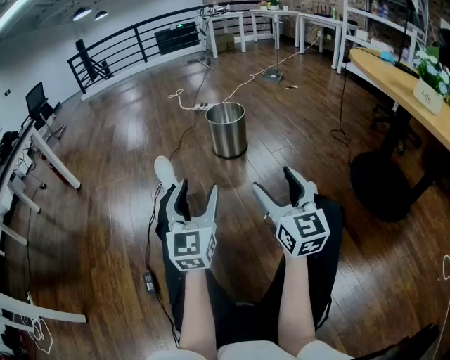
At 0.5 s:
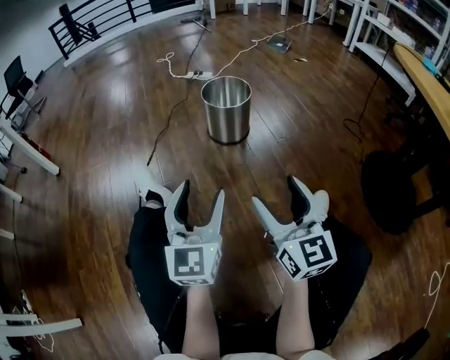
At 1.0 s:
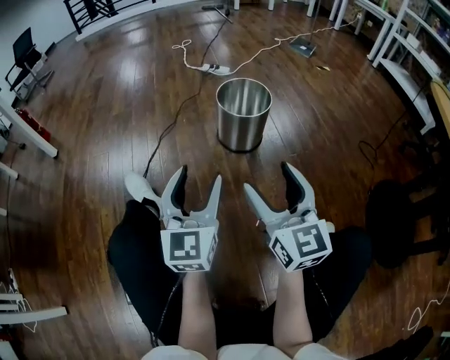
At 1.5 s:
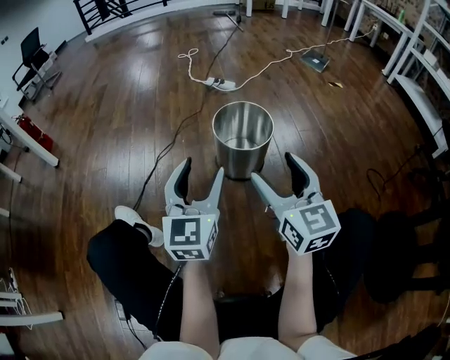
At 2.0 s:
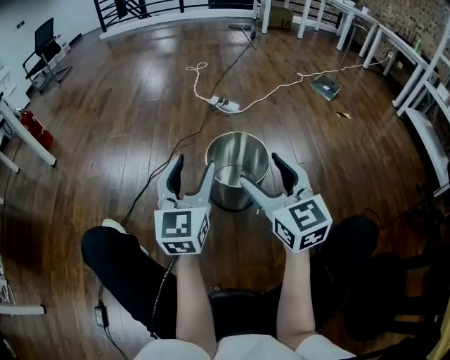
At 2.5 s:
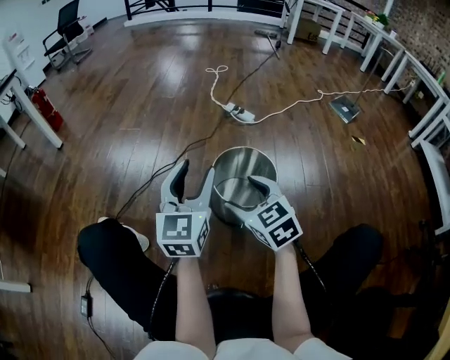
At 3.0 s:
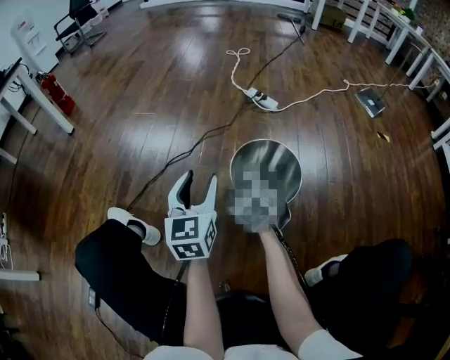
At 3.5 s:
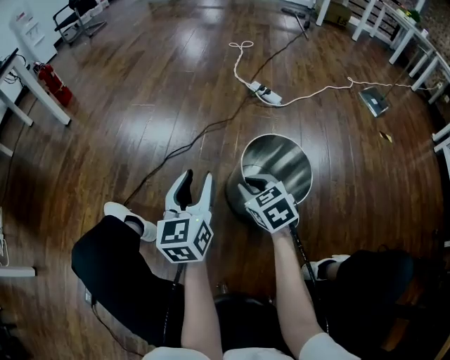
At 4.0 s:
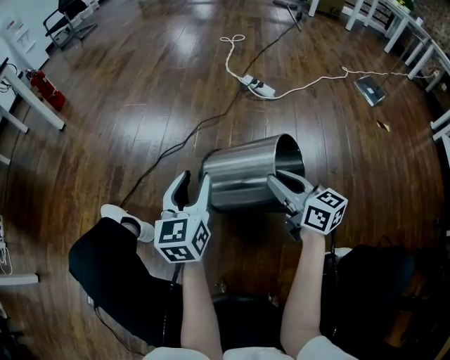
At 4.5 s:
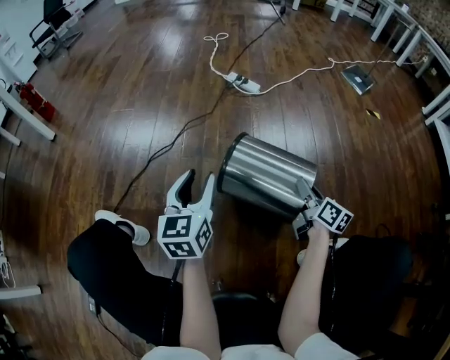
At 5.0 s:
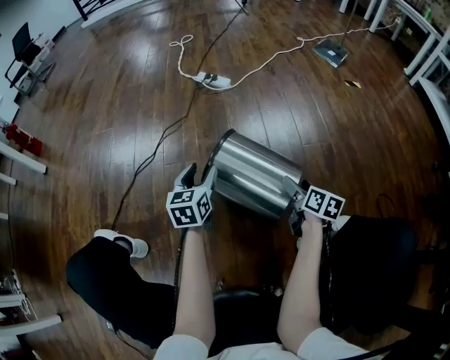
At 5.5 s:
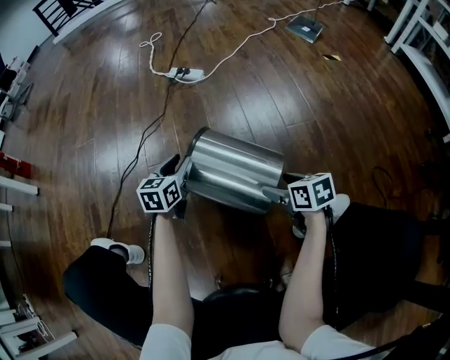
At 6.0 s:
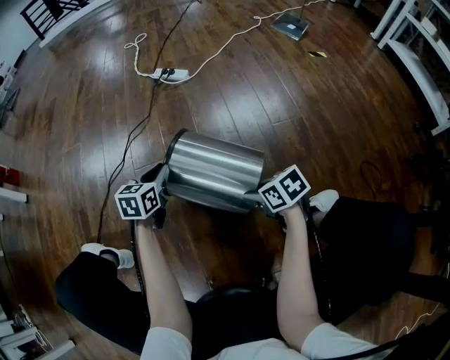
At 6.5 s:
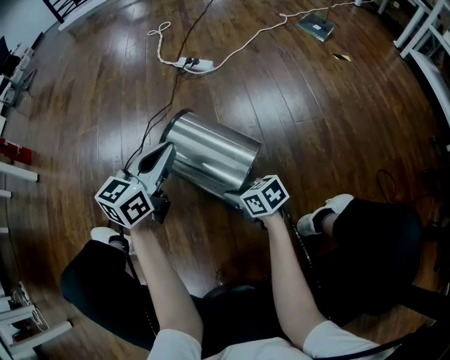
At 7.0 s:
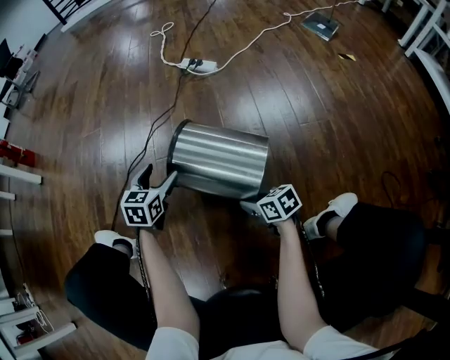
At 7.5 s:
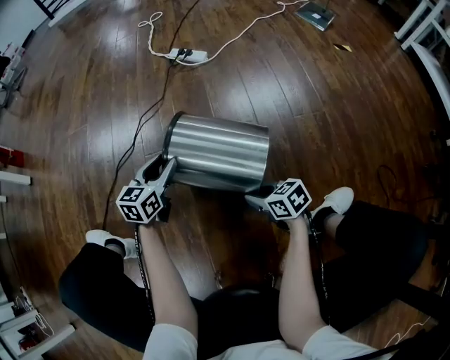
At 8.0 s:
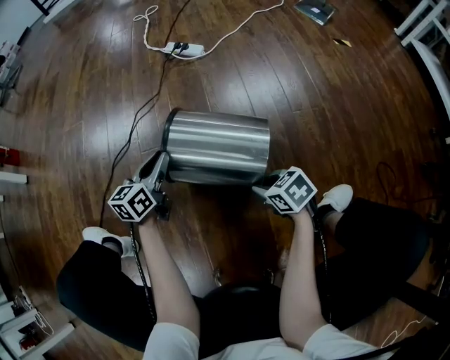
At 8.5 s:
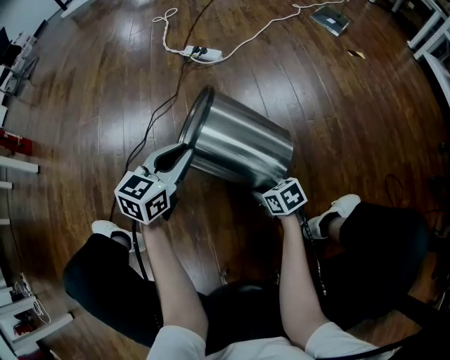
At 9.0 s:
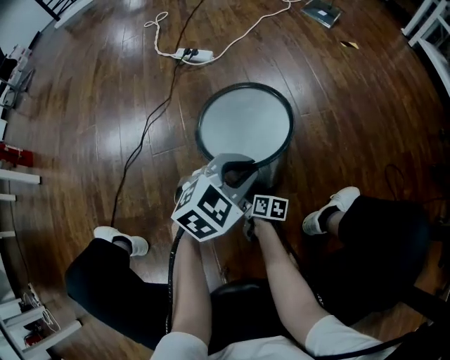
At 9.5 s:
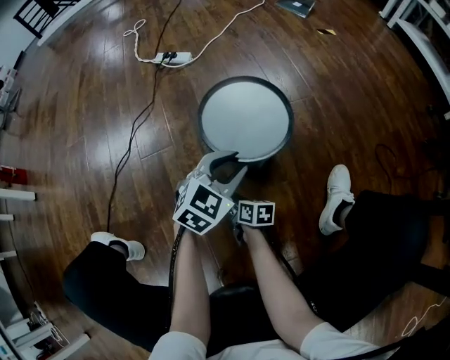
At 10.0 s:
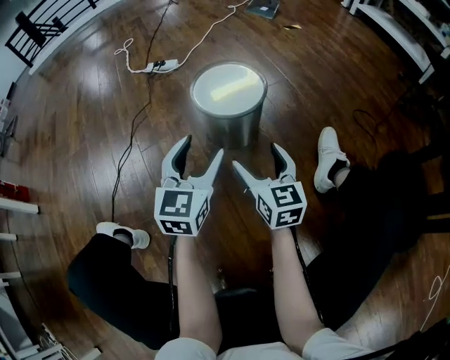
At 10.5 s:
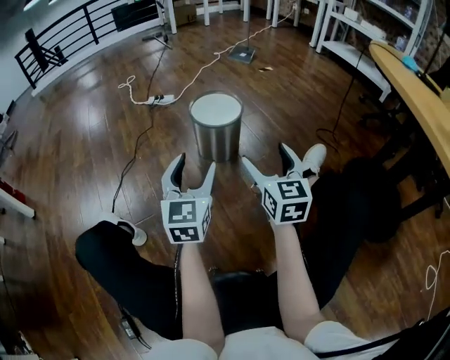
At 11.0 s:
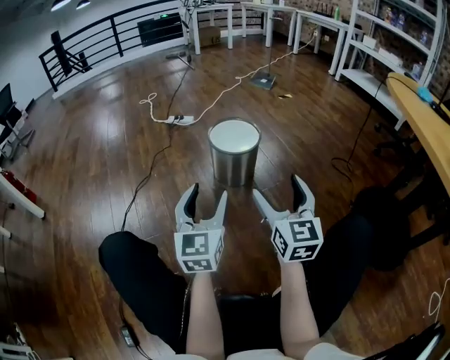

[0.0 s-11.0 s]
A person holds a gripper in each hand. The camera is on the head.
0.0 to 2.0 s: The two grippers travel together, forward, some 50 cm. The right gripper turns by some 30 degrees.
2.0 to 3.5 s: The right gripper travels downward and forward by approximately 25 cm, points its fingers approximately 40 degrees further downward, and closes its fingers; the left gripper goes approximately 15 cm downward, forward and to the left, and rotates approximately 20 degrees.
3.5 to 5.5 s: The left gripper shifts by approximately 25 cm, and turns by approximately 40 degrees. The right gripper moves about 30 cm, rolls clockwise, seen from behind, by some 50 degrees, and opens up.
5.5 to 7.5 s: The left gripper travels to the left by roughly 5 cm, moves about 15 cm upward and comes back, and closes and opens again. Meanwhile the right gripper shifts some 15 cm to the left and downward, turns by some 20 degrees, and closes its fingers.
7.5 to 9.0 s: The left gripper moves some 25 cm, and rolls clockwise, seen from behind, by approximately 40 degrees. The right gripper heads downward, covering about 10 cm, and rolls clockwise, seen from behind, by about 40 degrees.
9.0 to 11.0 s: The right gripper heads upward and backward, covering roughly 50 cm, tilts its fingers some 40 degrees upward, and opens its fingers. The left gripper shifts approximately 30 cm backward and upward, tips its fingers upward by roughly 40 degrees, and opens up.

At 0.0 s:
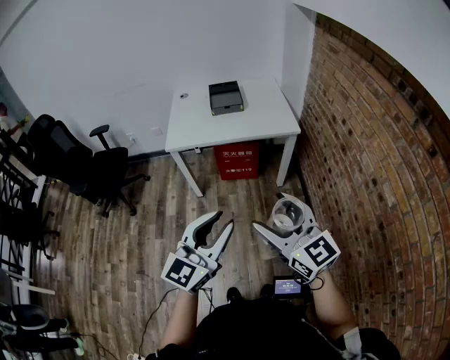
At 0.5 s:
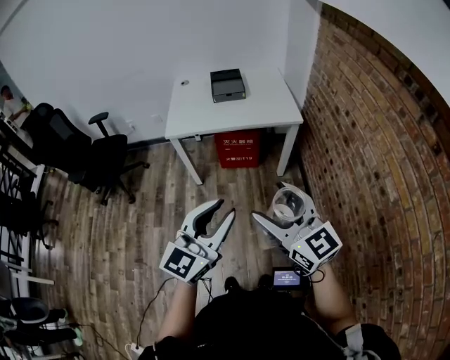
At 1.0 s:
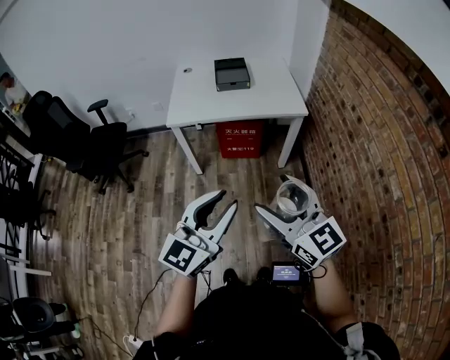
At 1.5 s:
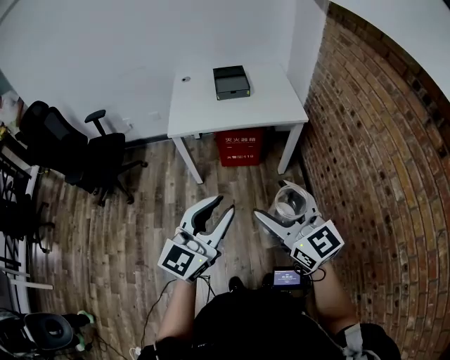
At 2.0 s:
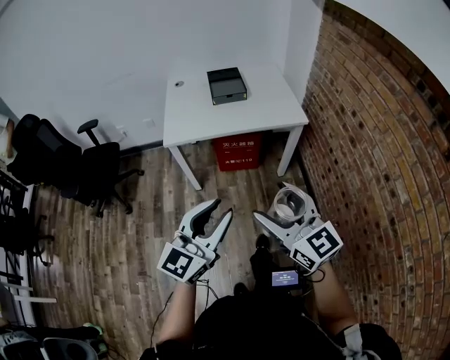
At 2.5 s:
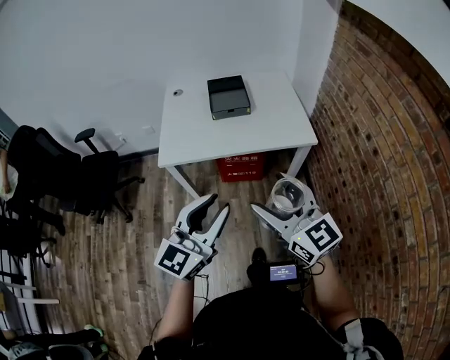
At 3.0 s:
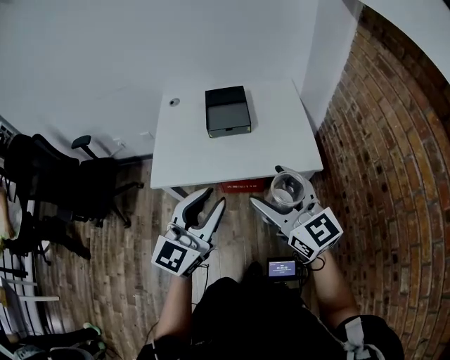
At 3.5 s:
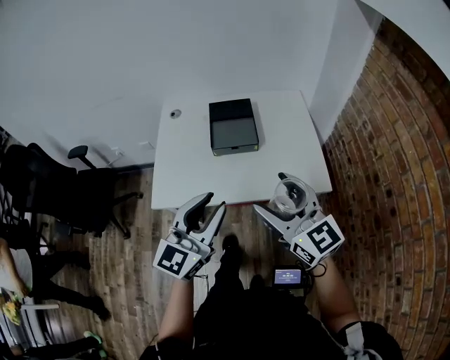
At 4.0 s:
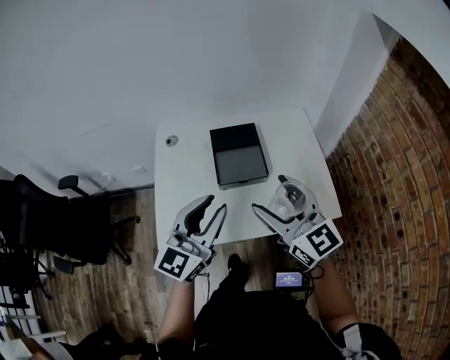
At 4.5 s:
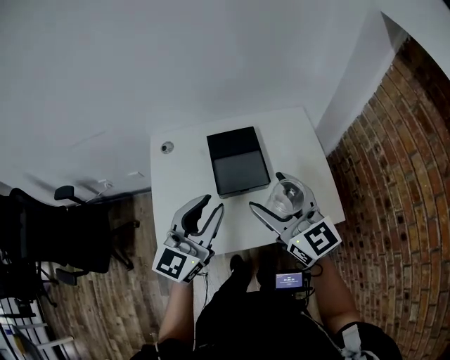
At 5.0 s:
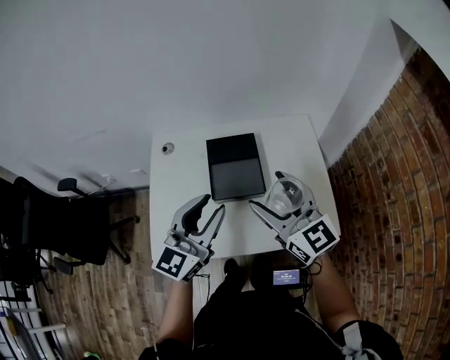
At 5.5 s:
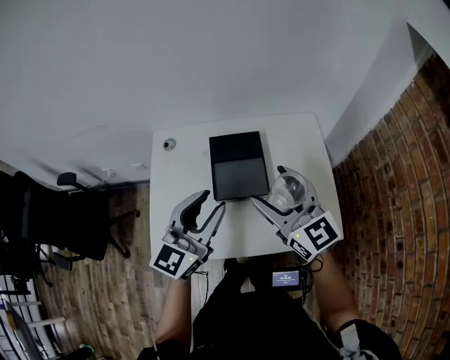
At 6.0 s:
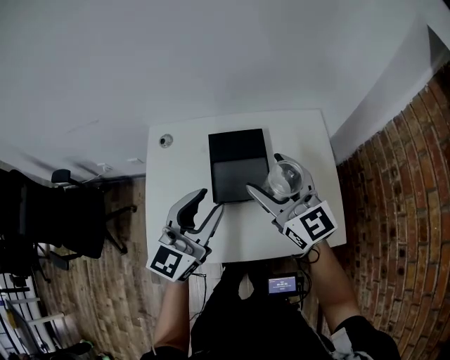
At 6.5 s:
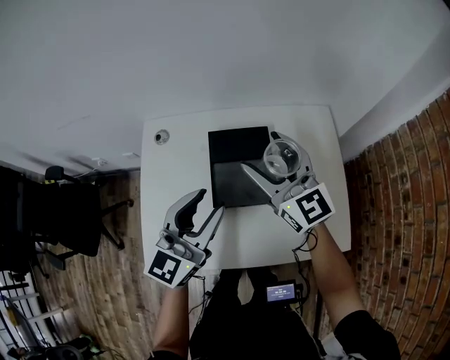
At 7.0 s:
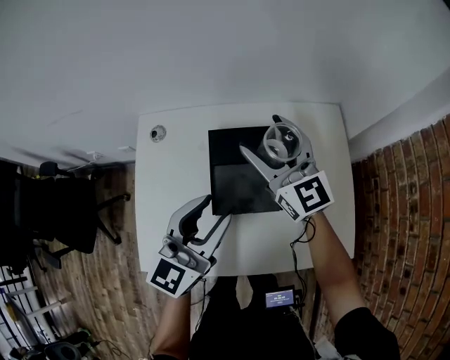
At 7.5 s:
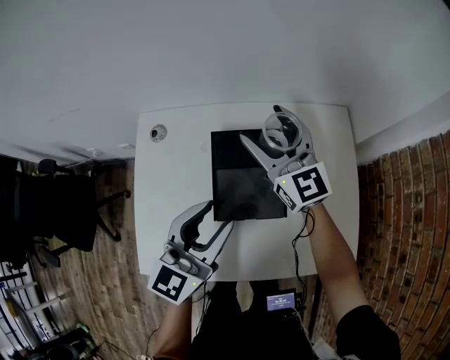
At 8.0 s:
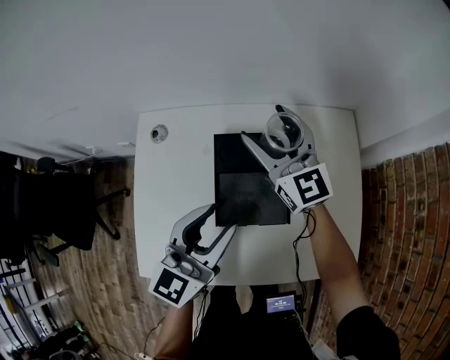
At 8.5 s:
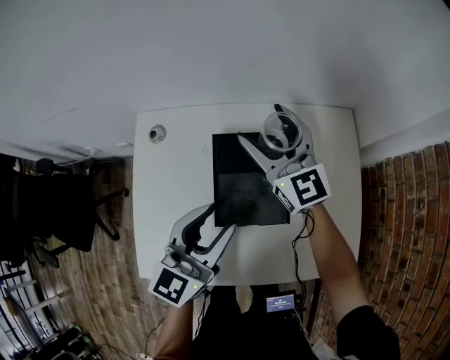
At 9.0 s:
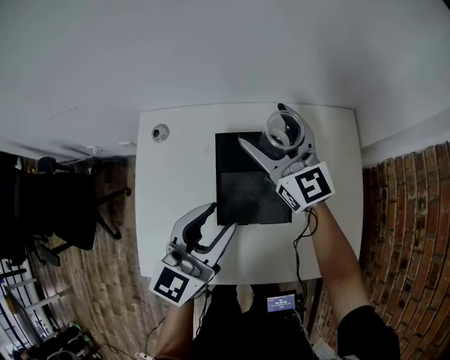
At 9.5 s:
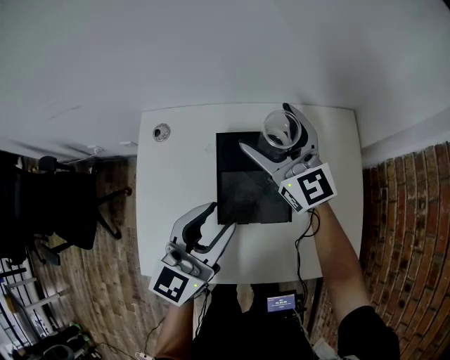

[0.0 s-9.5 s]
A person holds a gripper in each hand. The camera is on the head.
0.0 to 2.0 s: The grippers both shift forward and to the left by roughly 10 cm.
2.0 to 4.0 s: The two grippers travel together, forward, roughly 60 cm.
4.0 to 5.5 s: The grippers both shift forward by roughly 10 cm.
5.5 to 7.5 s: The left gripper heads forward and downward, covering approximately 15 cm; the right gripper is displaced forward and downward by some 25 cm.
7.5 to 9.5 s: The grippers make only small movements.

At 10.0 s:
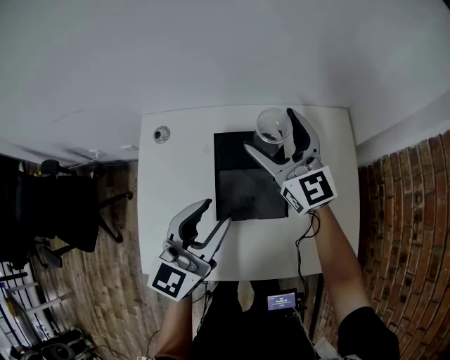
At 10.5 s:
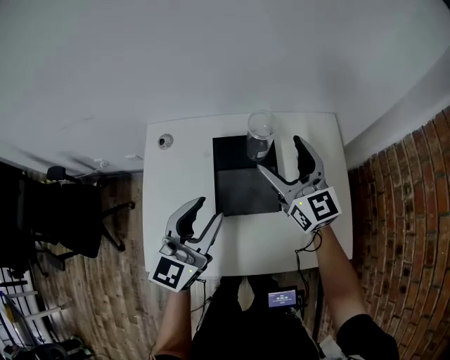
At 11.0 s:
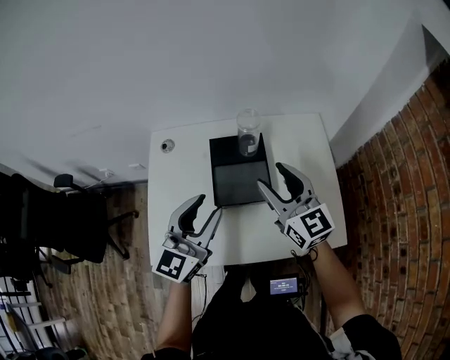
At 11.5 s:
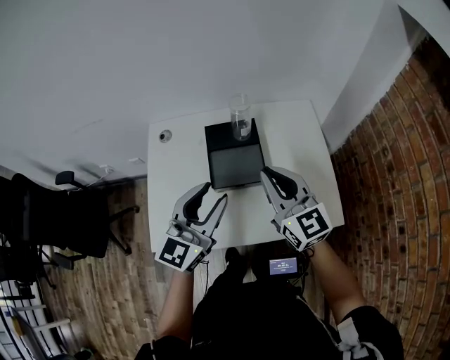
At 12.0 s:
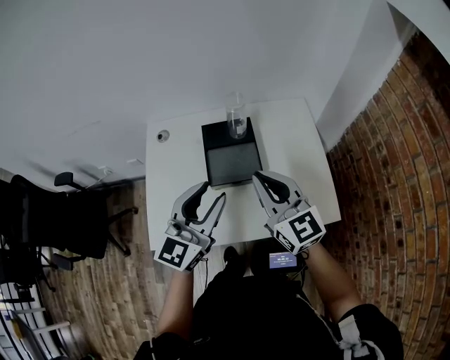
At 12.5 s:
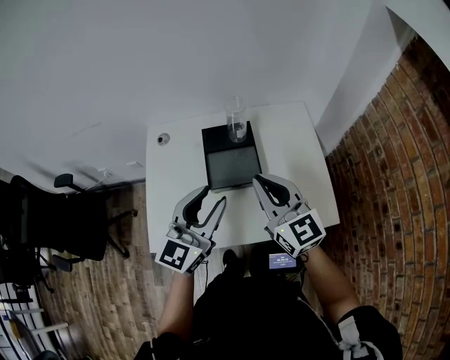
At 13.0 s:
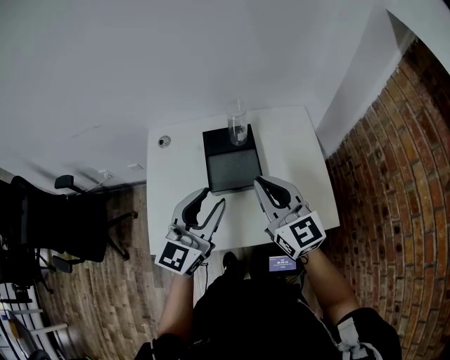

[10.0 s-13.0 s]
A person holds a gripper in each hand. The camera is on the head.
10.0 to 11.5 s: The left gripper is displaced backward and upward by roughly 15 cm. Meanwhile the right gripper moves backward, roughly 25 cm, and closes.
11.5 to 13.0 s: The grippers move only a little.

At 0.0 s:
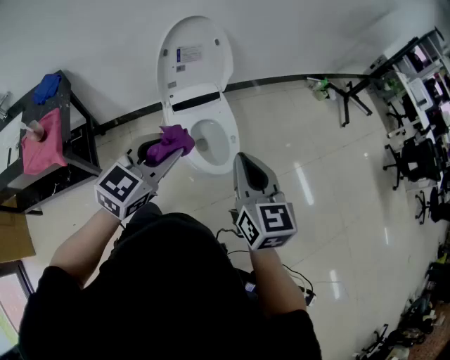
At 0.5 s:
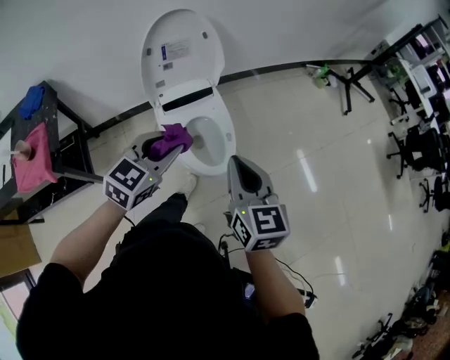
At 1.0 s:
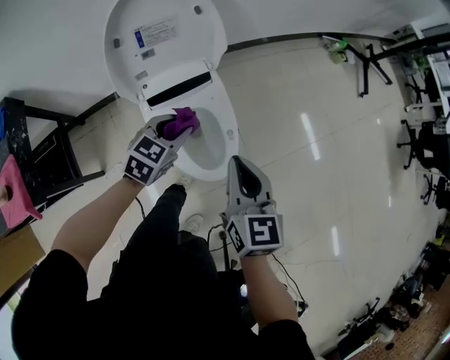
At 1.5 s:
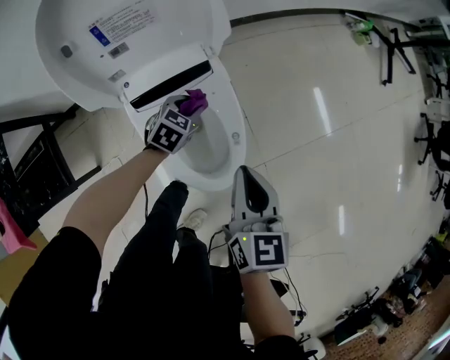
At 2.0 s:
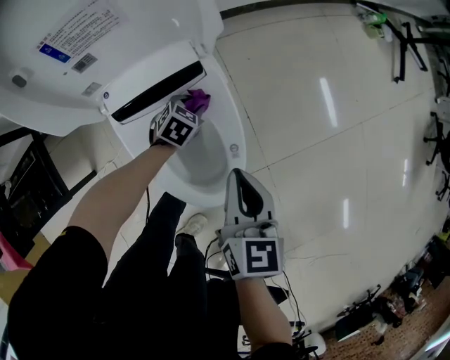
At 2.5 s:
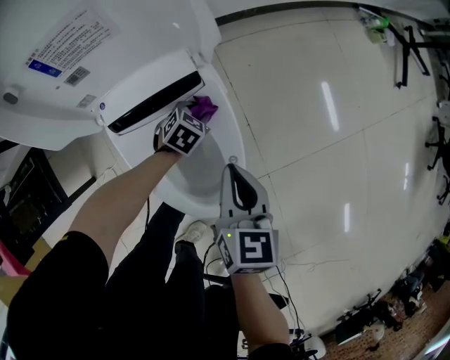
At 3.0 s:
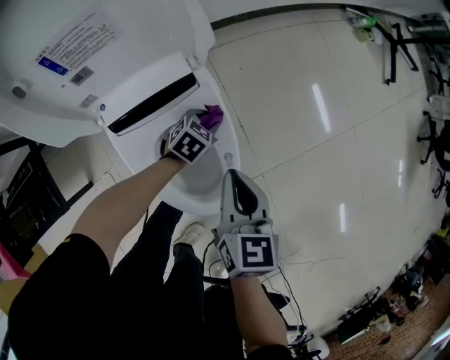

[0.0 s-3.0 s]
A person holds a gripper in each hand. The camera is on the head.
0.0 to 1.5 s: The right gripper goes approximately 40 cm forward and downward, and changes its angle by about 20 degrees. Meanwhile the left gripper shifts about 70 cm downward and forward, and tilts its fingers some 30 degrees downward.
1.5 to 3.0 s: The right gripper goes approximately 10 cm downward and forward; the left gripper heads downward and to the right, covering about 15 cm.
